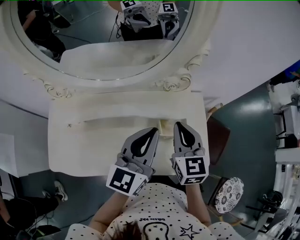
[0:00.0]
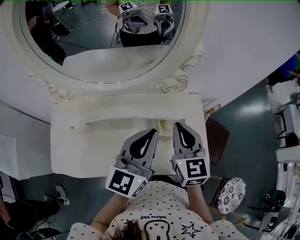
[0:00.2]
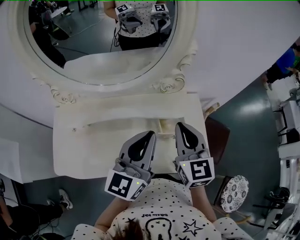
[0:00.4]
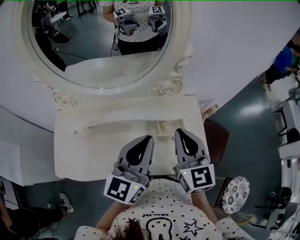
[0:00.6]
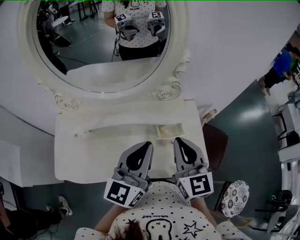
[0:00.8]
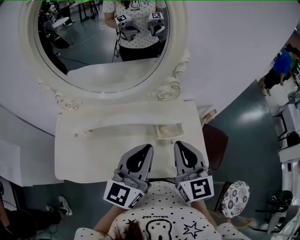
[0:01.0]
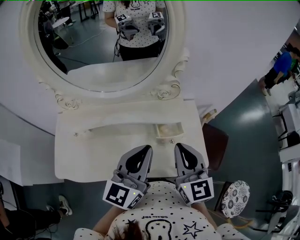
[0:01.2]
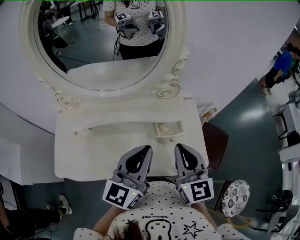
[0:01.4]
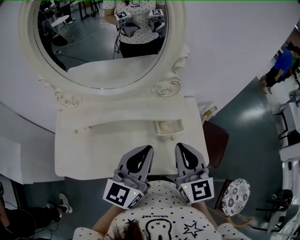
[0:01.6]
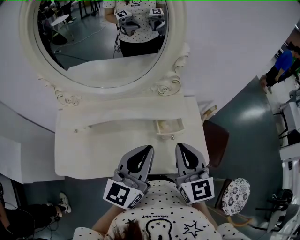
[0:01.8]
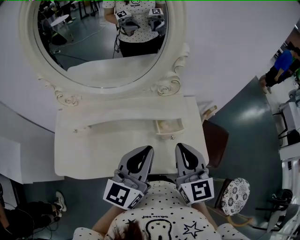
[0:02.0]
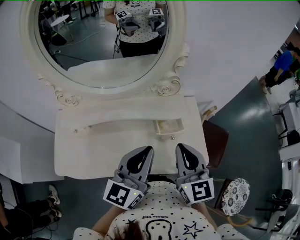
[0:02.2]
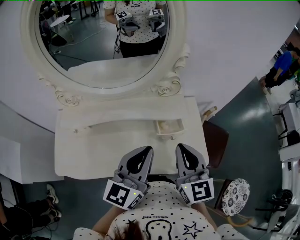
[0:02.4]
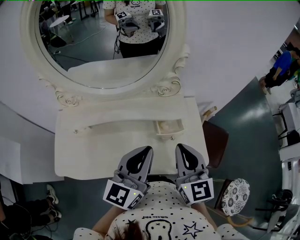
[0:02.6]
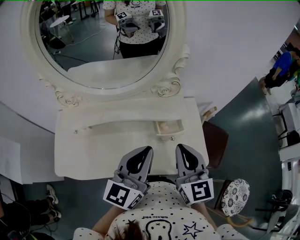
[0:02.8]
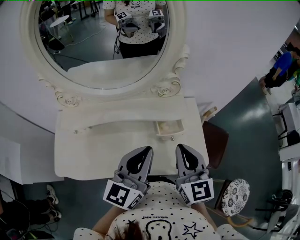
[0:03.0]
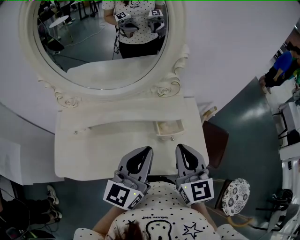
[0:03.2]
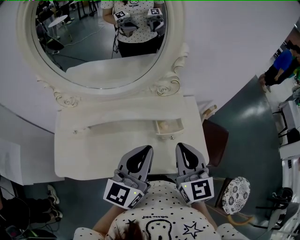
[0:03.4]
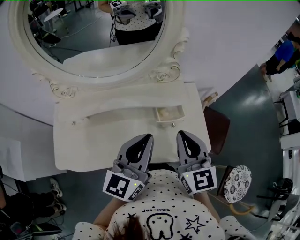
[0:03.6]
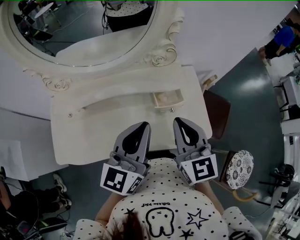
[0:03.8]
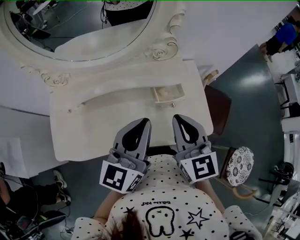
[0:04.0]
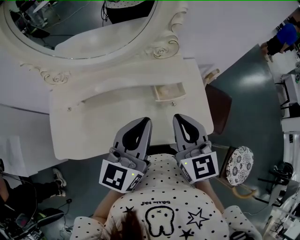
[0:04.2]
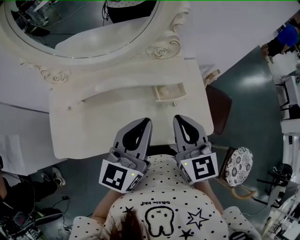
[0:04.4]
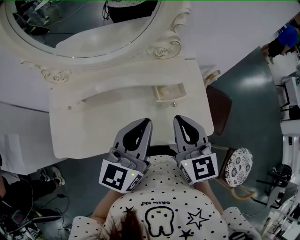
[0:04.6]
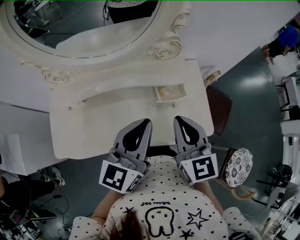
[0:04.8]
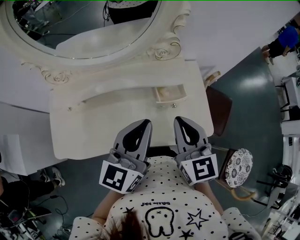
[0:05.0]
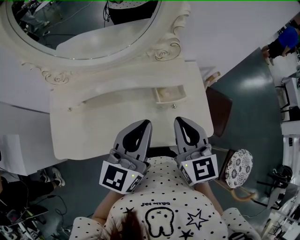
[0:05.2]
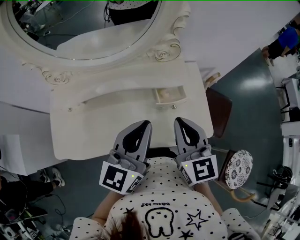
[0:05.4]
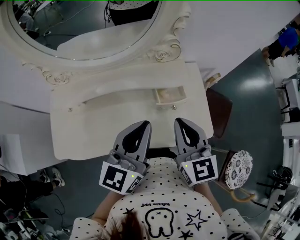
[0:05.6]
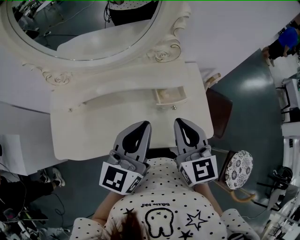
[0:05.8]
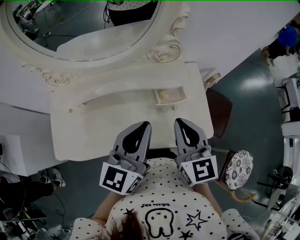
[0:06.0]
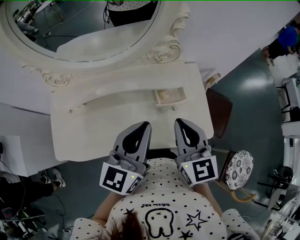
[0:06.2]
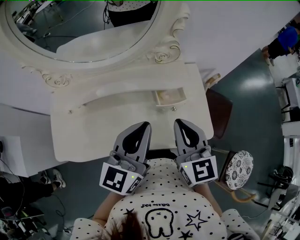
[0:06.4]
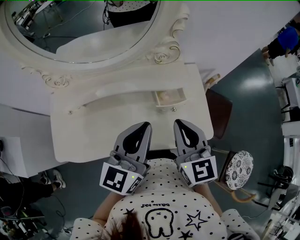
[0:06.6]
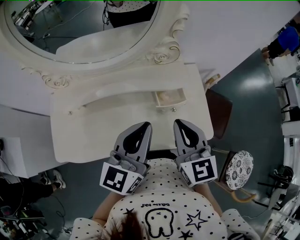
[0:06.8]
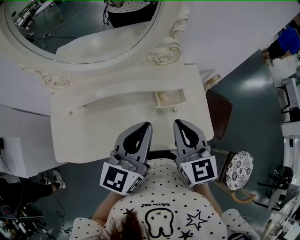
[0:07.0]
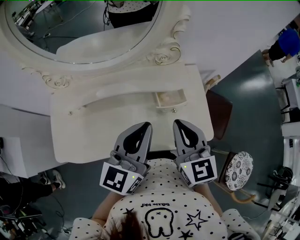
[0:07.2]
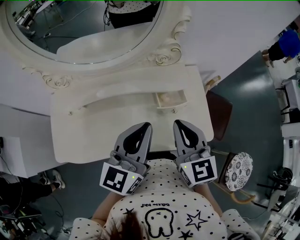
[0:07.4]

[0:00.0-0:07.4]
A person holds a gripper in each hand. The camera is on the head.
0:00.0 to 0:01.4: The left gripper travels backward by approximately 10 cm. The right gripper moves backward and upward, about 15 cm.
0:01.4 to 0:03.0: Neither gripper changes place.
0:03.0 to 0:04.4: There are only small adjustments of the grippers.
0:04.4 to 0:07.4: Both grippers stay about where they are.

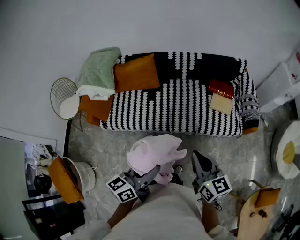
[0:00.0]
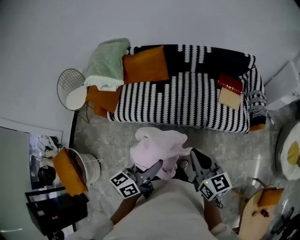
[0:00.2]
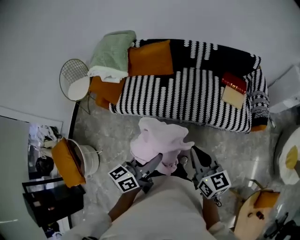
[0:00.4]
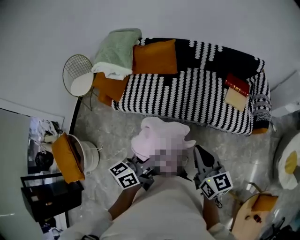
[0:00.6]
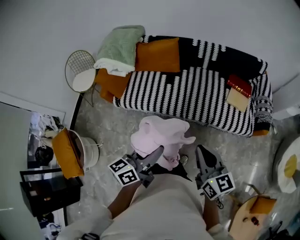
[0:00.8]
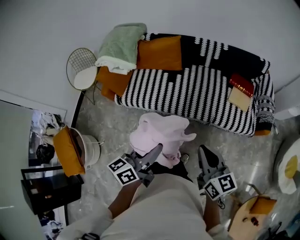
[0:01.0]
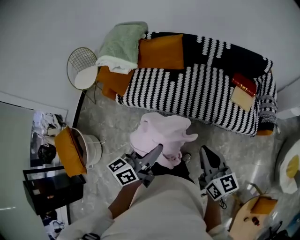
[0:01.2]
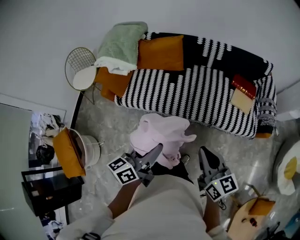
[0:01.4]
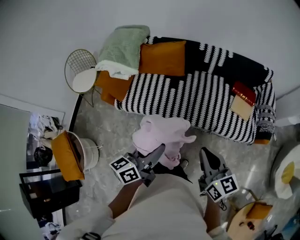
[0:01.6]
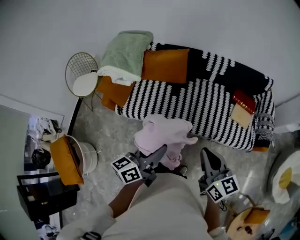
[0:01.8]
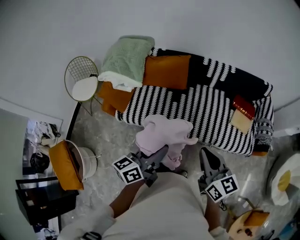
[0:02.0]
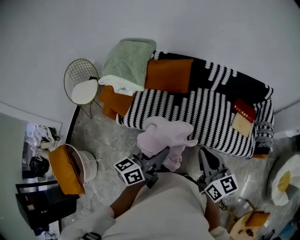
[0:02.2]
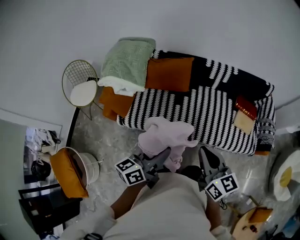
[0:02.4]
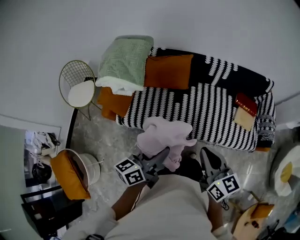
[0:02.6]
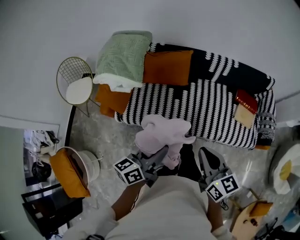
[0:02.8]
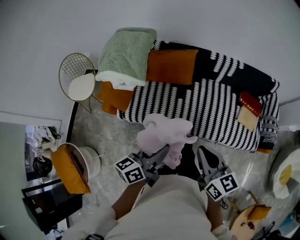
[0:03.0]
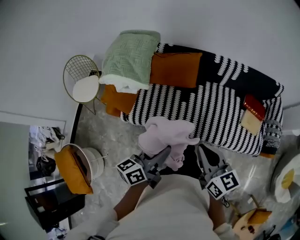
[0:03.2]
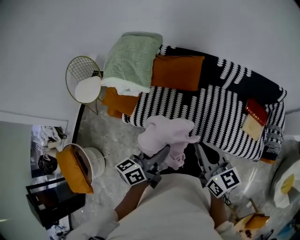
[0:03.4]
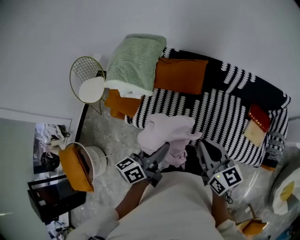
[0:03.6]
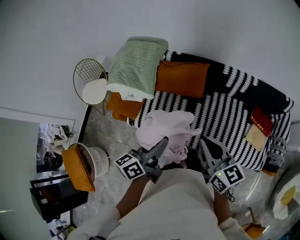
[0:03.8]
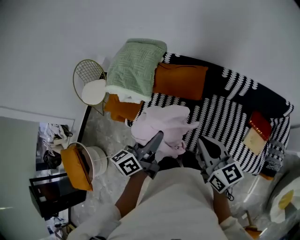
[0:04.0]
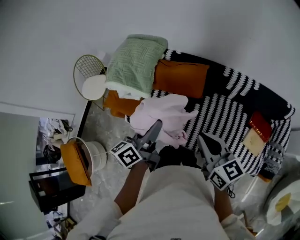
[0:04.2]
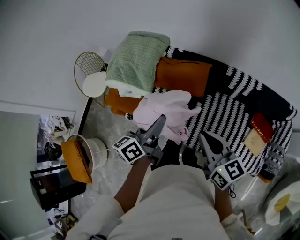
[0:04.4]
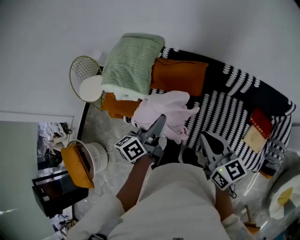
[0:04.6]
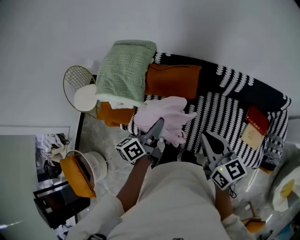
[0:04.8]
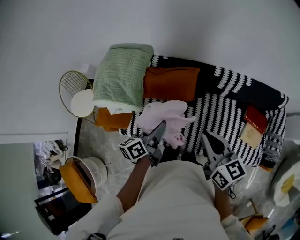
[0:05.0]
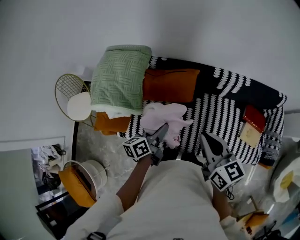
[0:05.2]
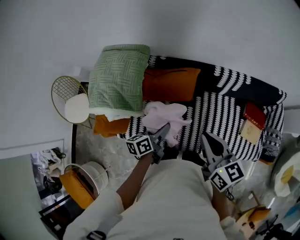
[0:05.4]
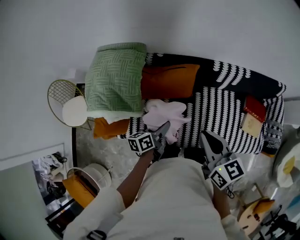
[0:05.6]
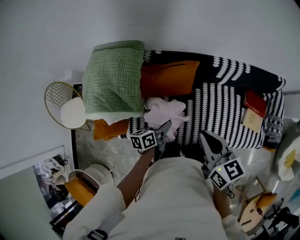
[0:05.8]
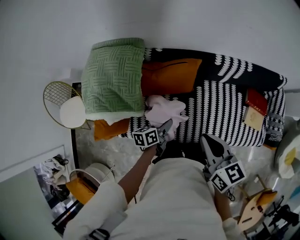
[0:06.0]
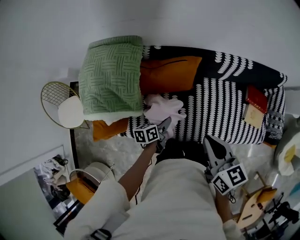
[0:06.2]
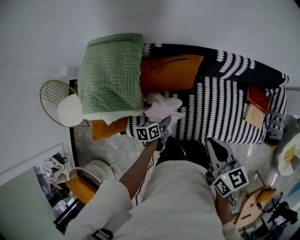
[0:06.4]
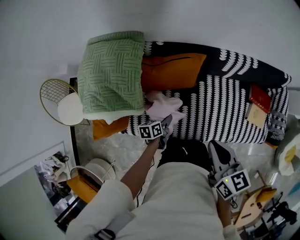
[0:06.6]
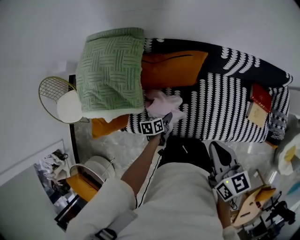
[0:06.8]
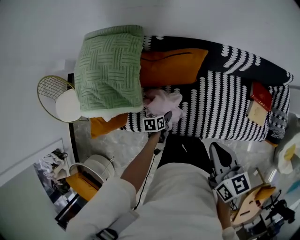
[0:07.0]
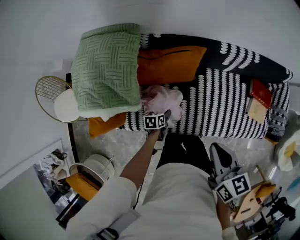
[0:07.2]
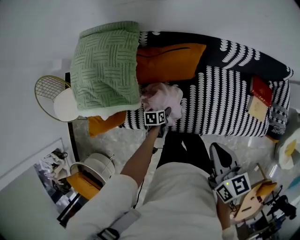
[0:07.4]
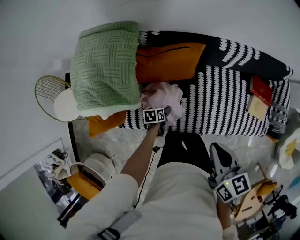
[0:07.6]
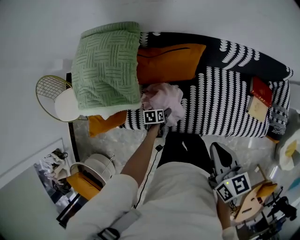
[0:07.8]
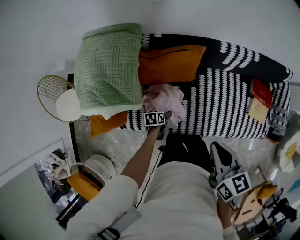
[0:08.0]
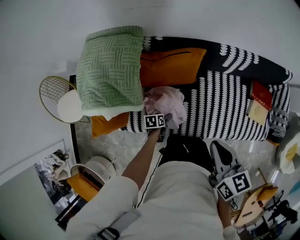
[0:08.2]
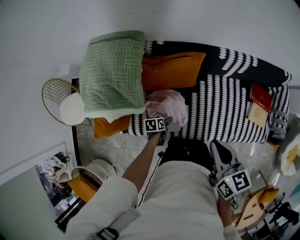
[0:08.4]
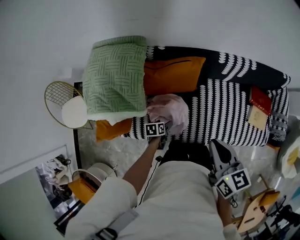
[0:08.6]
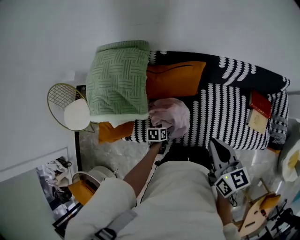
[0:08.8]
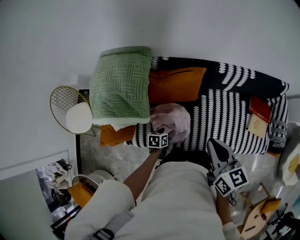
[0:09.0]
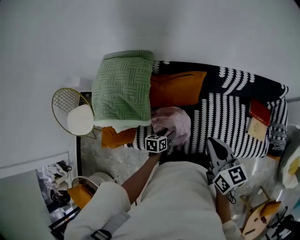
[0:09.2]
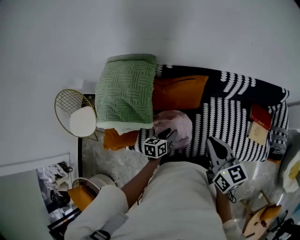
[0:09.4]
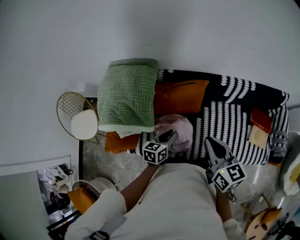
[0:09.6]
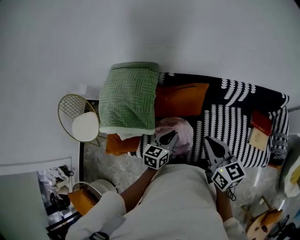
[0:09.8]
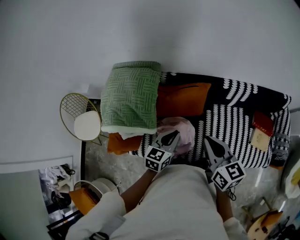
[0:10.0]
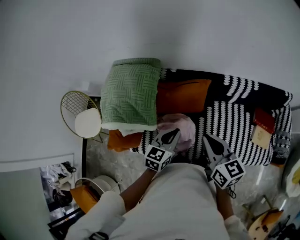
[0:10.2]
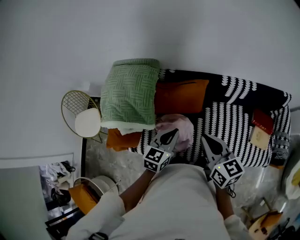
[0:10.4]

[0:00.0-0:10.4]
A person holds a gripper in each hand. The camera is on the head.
0:00.0 to 0:01.4: Both grippers travel together to the left, roughly 5 cm.
0:01.4 to 0:03.0: Both grippers travel together forward and to the left, about 20 cm.
0:03.0 to 0:04.4: Both grippers move forward, about 20 cm. The left gripper rotates approximately 20 degrees.
0:04.4 to 0:06.0: The right gripper ends up approximately 15 cm from where it was, and rotates approximately 20 degrees; the left gripper goes roughly 25 cm downward, and turns by approximately 40 degrees.
0:06.0 to 0:07.4: The right gripper ends up approximately 5 cm from where it was. The left gripper goes approximately 20 cm downward, and turns by roughly 20 degrees.
0:07.4 to 0:09.0: The right gripper moves approximately 5 cm. The left gripper moves upward, some 10 cm.
0:09.0 to 0:10.4: The left gripper goes about 25 cm upward, changes its angle by approximately 40 degrees, and closes up.

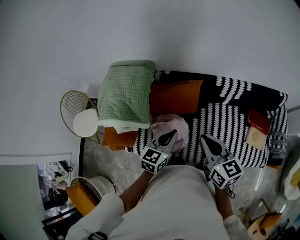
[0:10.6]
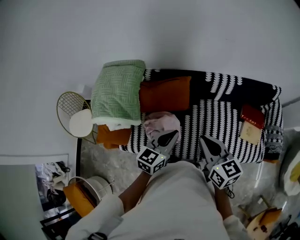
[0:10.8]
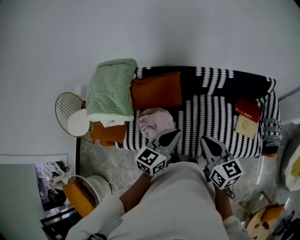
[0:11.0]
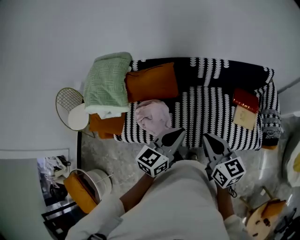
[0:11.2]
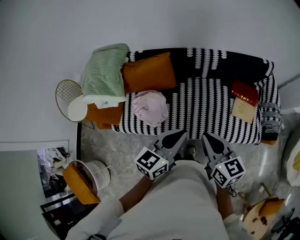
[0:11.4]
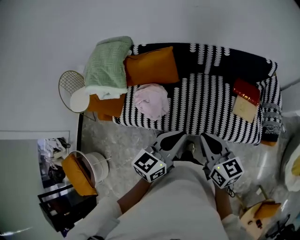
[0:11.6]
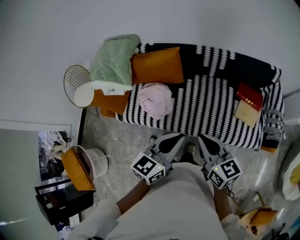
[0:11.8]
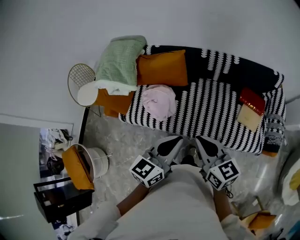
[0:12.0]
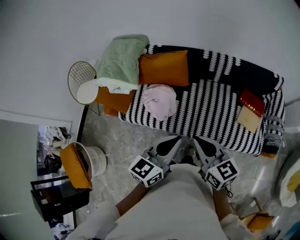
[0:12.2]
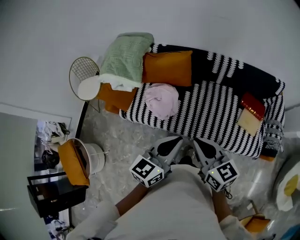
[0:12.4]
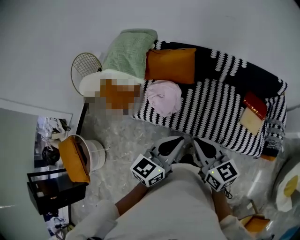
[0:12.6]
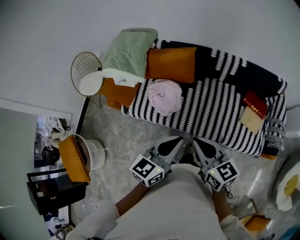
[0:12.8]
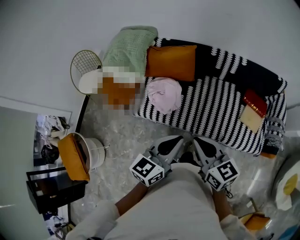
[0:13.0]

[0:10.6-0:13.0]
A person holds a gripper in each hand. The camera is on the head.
0:10.6 to 0:11.8: Both grippers move to the right and backward, roughly 30 cm.
0:11.8 to 0:13.0: The left gripper shifts approximately 10 cm to the left and backward. The right gripper travels to the left by some 10 cm.

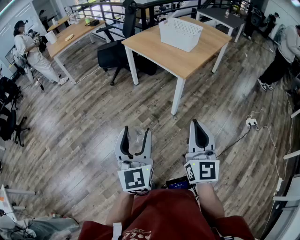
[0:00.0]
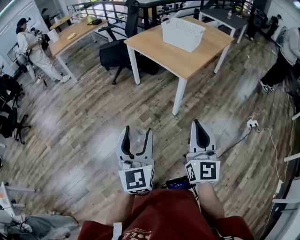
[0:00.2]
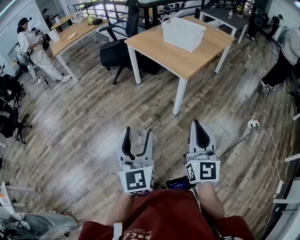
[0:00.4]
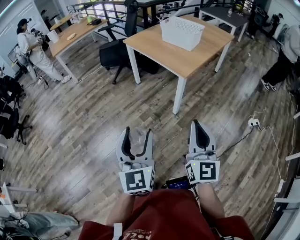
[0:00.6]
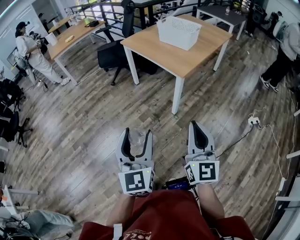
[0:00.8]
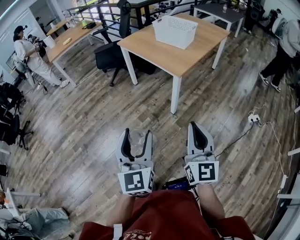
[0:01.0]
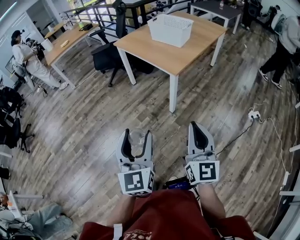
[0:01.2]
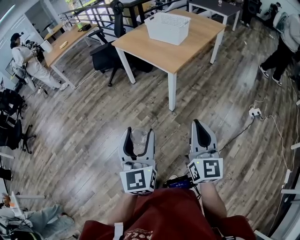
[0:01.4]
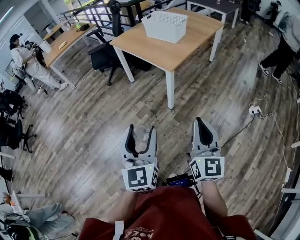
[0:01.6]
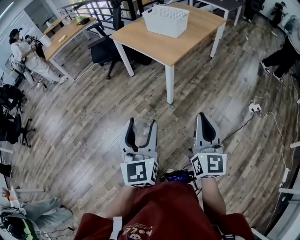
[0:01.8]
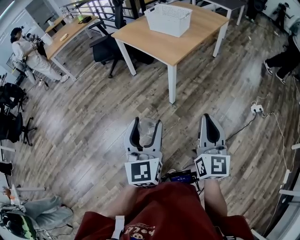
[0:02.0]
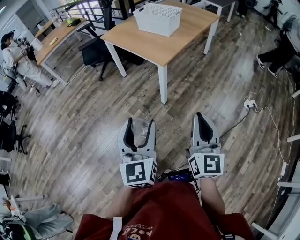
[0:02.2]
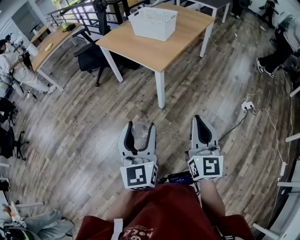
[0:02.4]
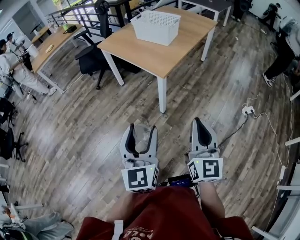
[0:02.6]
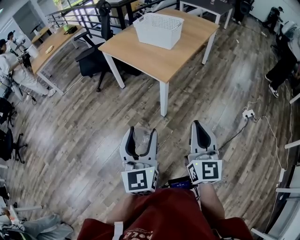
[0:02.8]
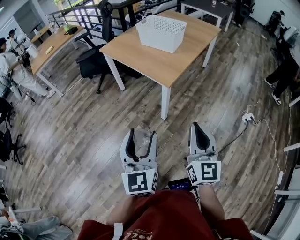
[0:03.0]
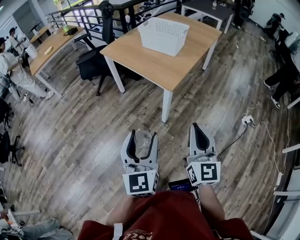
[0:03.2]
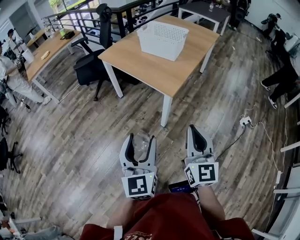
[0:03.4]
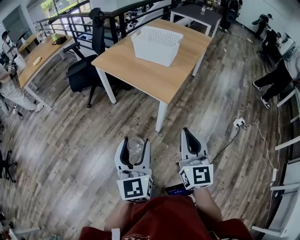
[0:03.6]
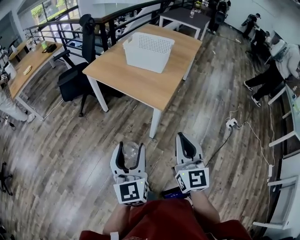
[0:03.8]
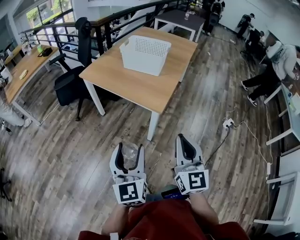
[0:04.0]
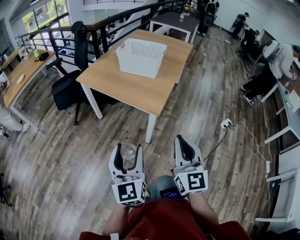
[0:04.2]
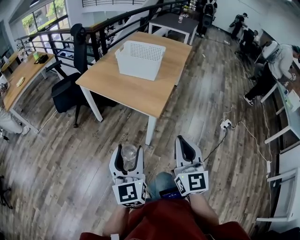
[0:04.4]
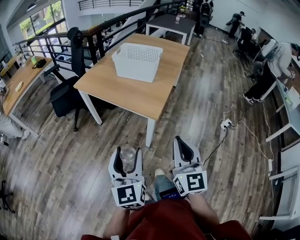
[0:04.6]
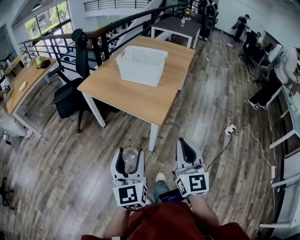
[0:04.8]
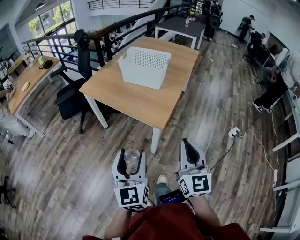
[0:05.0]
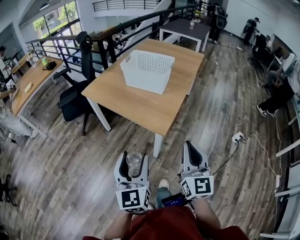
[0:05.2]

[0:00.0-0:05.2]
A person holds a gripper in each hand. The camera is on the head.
0:00.0 to 0:01.8: Both grippers move to the right, approximately 15 cm.
0:01.8 to 0:03.4: The two grippers go roughly 20 cm forward and to the left.
0:03.4 to 0:05.2: The grippers both shift forward by some 15 cm.
